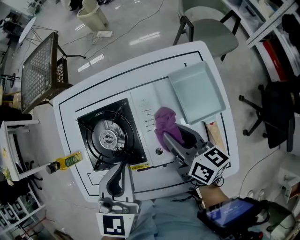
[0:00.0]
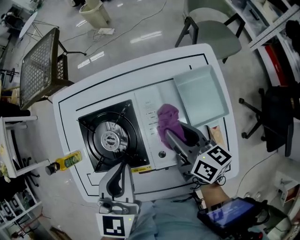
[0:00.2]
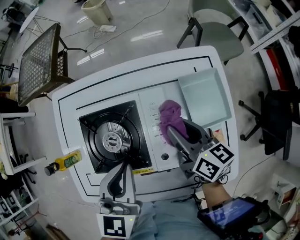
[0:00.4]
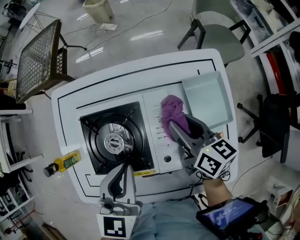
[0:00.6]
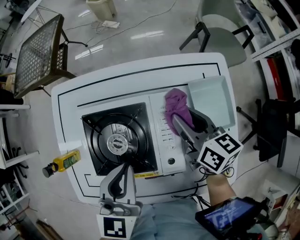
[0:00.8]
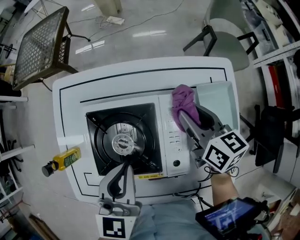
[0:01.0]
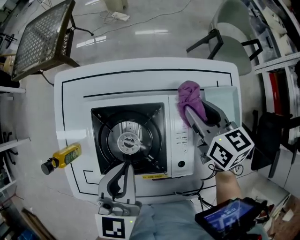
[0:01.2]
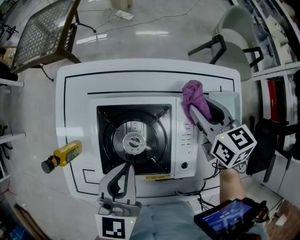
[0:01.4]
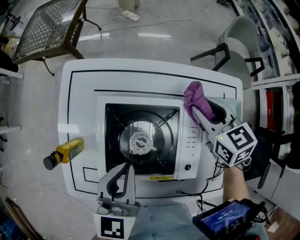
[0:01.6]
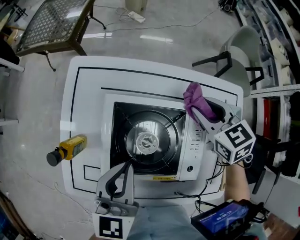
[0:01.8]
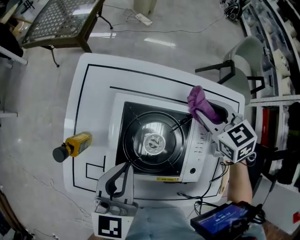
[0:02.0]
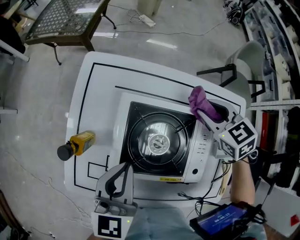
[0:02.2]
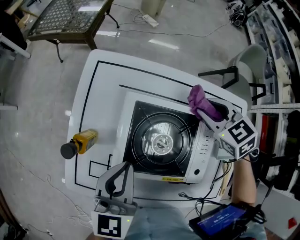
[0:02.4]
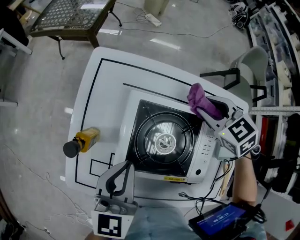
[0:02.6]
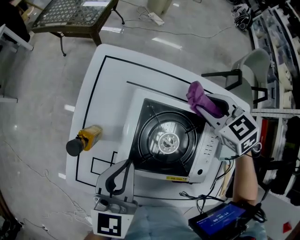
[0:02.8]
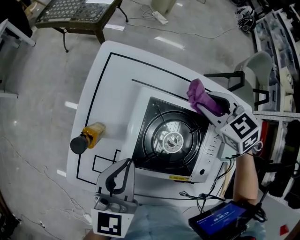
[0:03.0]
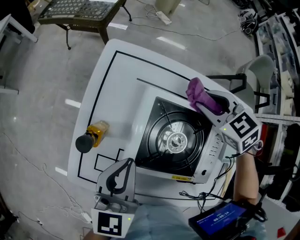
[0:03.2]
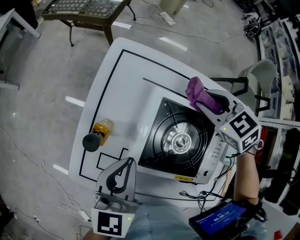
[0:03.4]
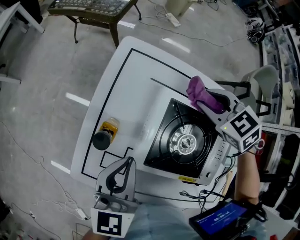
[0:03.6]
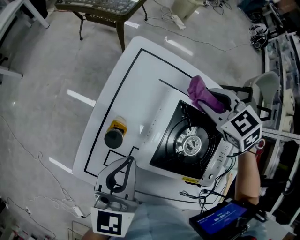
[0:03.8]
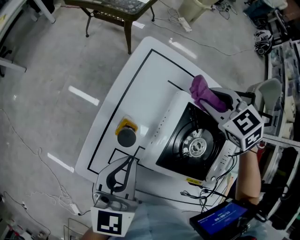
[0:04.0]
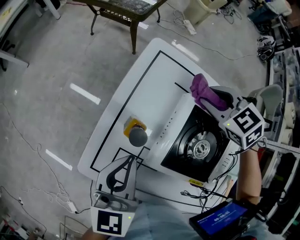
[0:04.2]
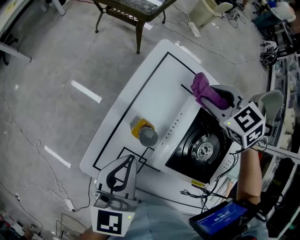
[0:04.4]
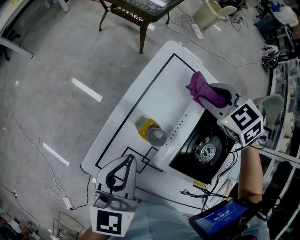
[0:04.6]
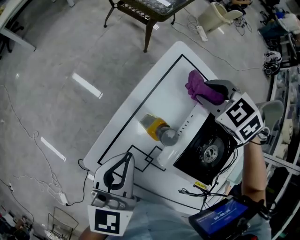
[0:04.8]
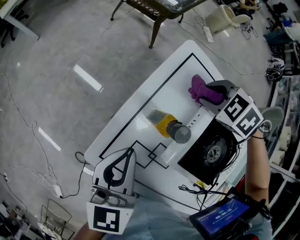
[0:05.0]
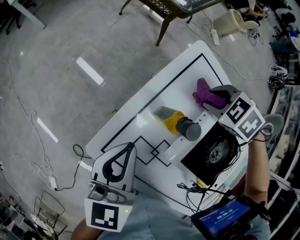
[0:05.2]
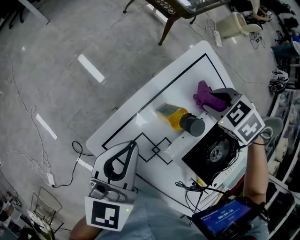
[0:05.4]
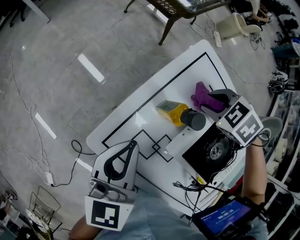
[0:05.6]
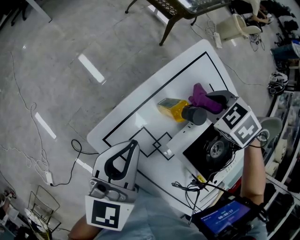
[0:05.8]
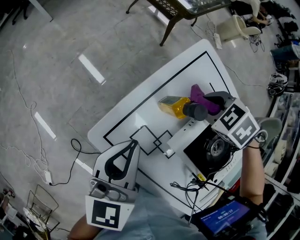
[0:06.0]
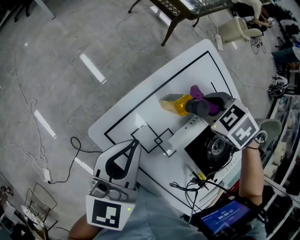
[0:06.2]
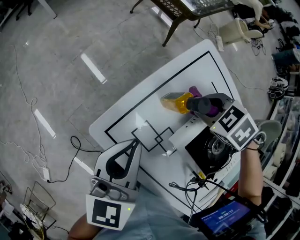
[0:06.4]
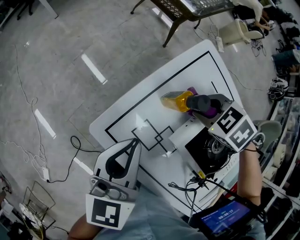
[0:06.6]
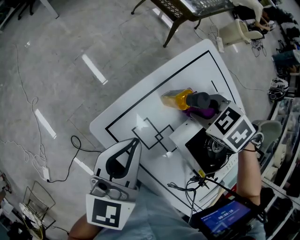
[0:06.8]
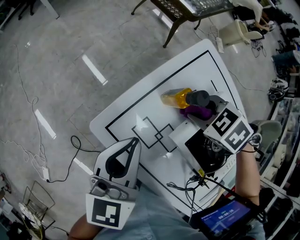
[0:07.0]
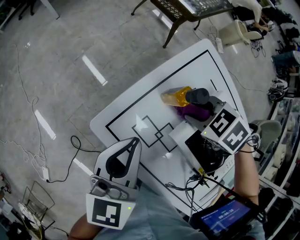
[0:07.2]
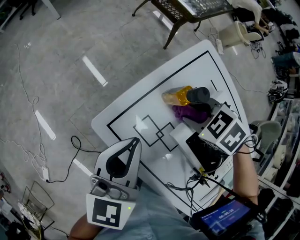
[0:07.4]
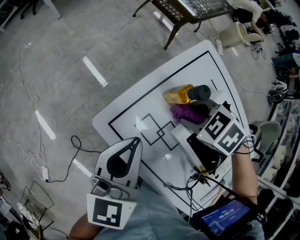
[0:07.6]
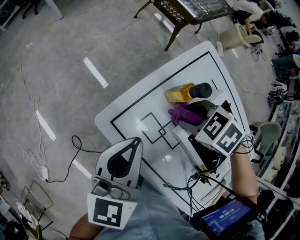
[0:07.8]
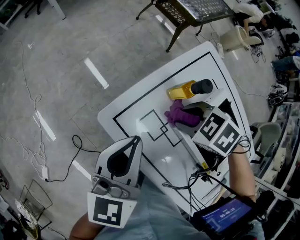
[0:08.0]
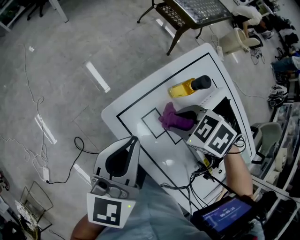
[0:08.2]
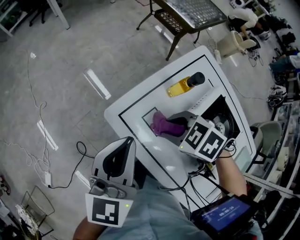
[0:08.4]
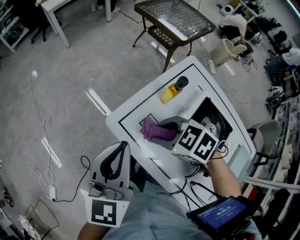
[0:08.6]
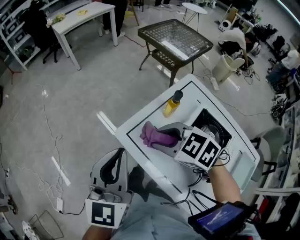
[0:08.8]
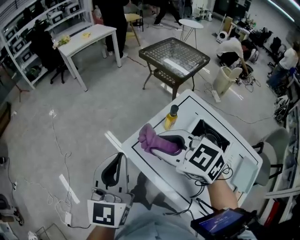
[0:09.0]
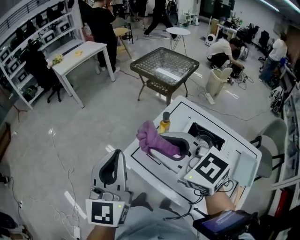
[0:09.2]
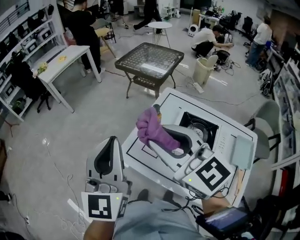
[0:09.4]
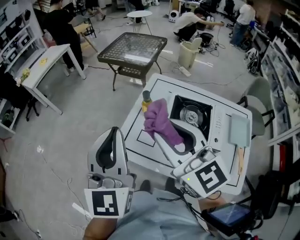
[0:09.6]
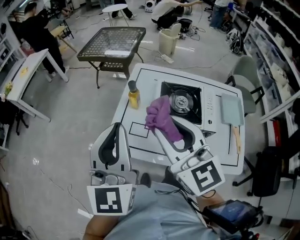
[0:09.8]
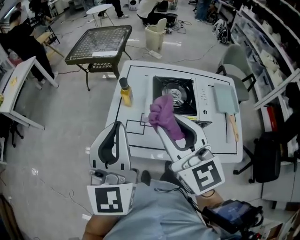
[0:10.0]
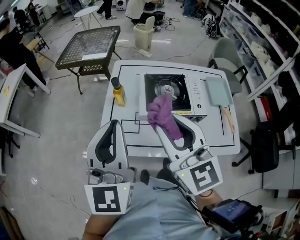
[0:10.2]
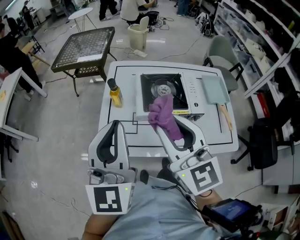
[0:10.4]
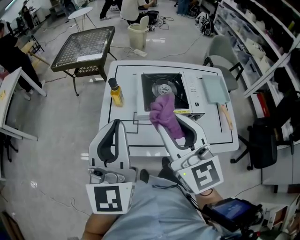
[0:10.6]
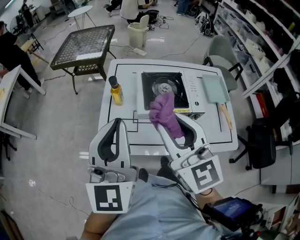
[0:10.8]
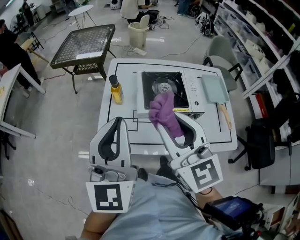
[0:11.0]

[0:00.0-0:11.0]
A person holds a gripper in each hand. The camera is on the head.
0:00.0 to 0:01.6: The left gripper is displaced to the left by some 15 cm; the right gripper is displaced forward by approximately 15 cm, and twists some 40 degrees counterclockwise, seen from behind.
0:01.6 to 0:03.2: The left gripper shifts roughly 10 cm to the left; the right gripper goes roughly 15 cm to the left and forward, and changes its angle by roughly 40 degrees.
0:03.2 to 0:04.8: The left gripper heads to the left, covering some 15 cm. The right gripper is displaced to the left and forward by roughly 25 cm, and swivels some 30 degrees.
0:04.8 to 0:06.2: The left gripper ends up roughly 5 cm from where it was. Meanwhile the right gripper ends up about 10 cm from where it was.
0:06.2 to 0:07.8: The right gripper changes place by about 10 cm.
0:07.8 to 0:09.4: The two grippers go about 35 cm upward. The right gripper tilts its fingers some 70 degrees upward, while the left gripper rotates about 30 degrees.
0:09.4 to 0:11.0: The grippers both shift downward by some 10 cm. The left gripper rotates approximately 30 degrees. Meanwhile the right gripper rotates roughly 50 degrees.

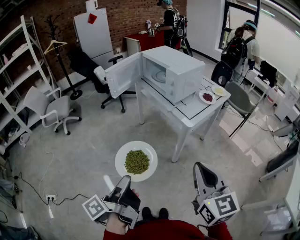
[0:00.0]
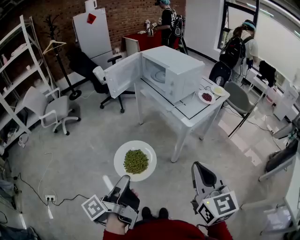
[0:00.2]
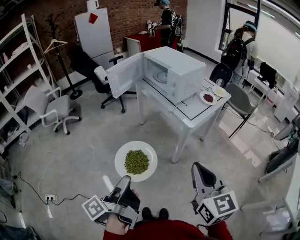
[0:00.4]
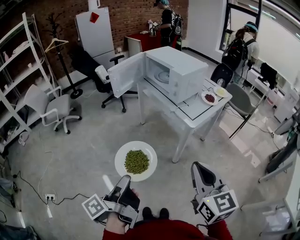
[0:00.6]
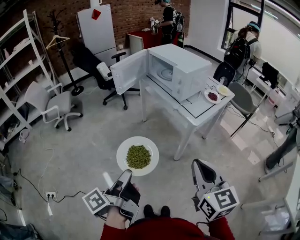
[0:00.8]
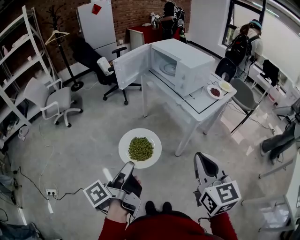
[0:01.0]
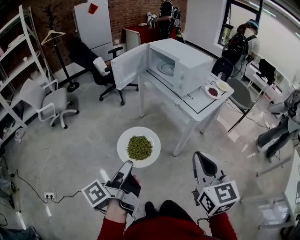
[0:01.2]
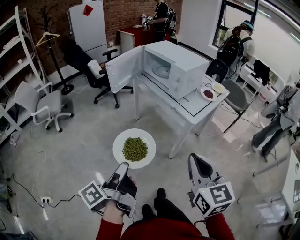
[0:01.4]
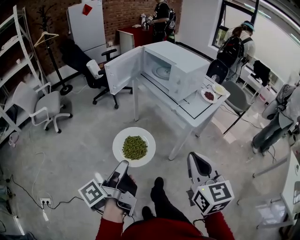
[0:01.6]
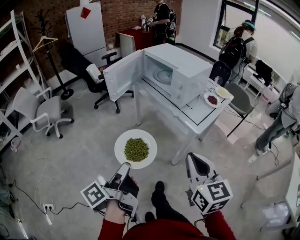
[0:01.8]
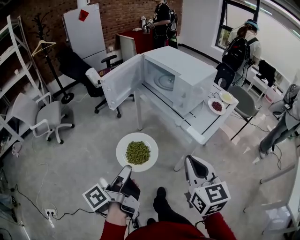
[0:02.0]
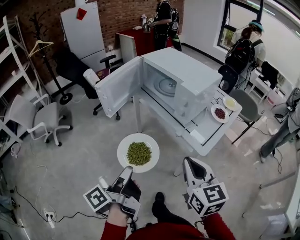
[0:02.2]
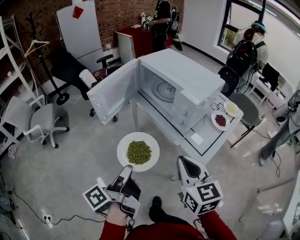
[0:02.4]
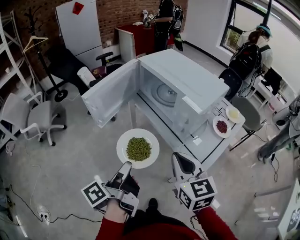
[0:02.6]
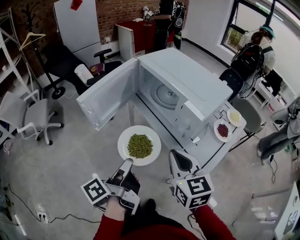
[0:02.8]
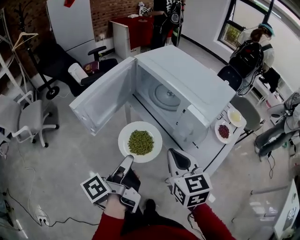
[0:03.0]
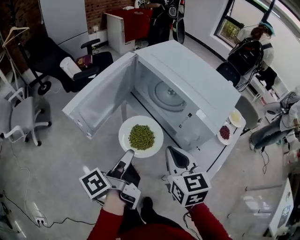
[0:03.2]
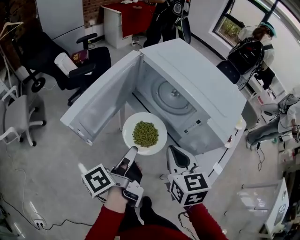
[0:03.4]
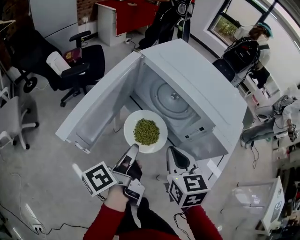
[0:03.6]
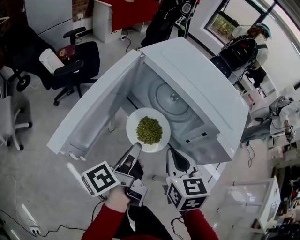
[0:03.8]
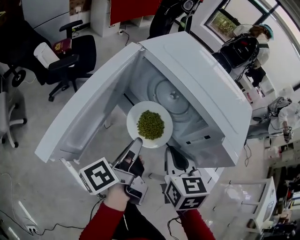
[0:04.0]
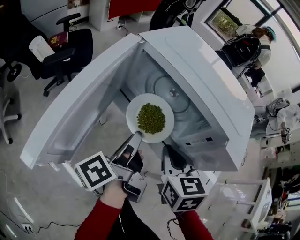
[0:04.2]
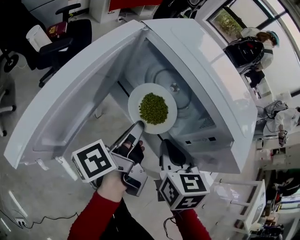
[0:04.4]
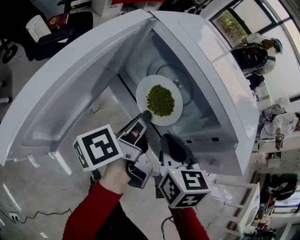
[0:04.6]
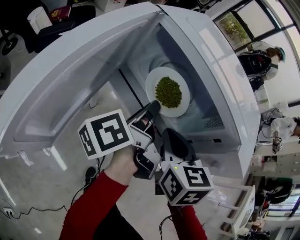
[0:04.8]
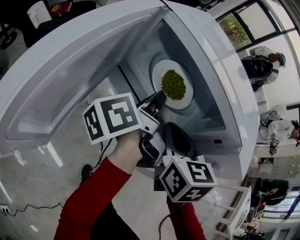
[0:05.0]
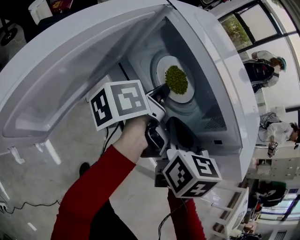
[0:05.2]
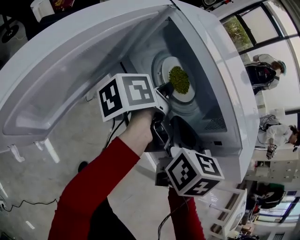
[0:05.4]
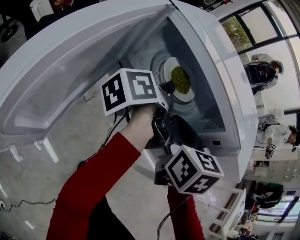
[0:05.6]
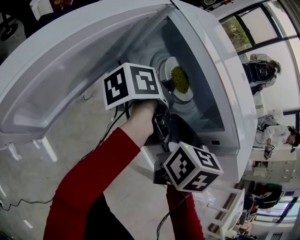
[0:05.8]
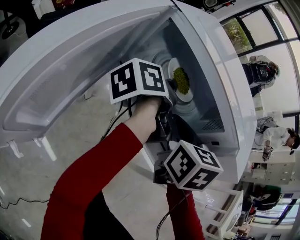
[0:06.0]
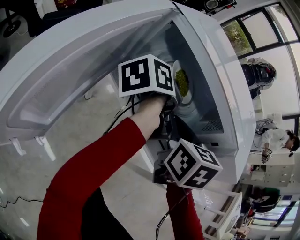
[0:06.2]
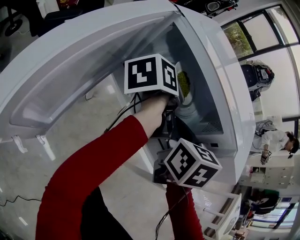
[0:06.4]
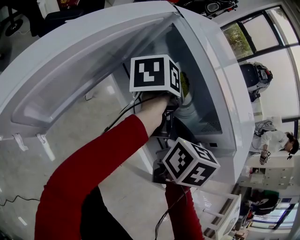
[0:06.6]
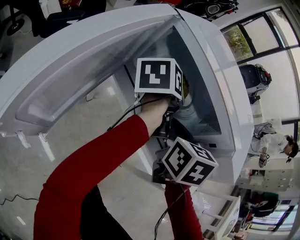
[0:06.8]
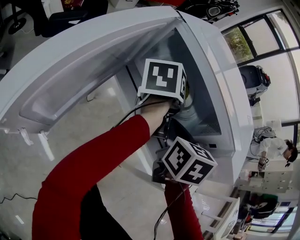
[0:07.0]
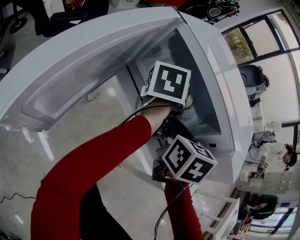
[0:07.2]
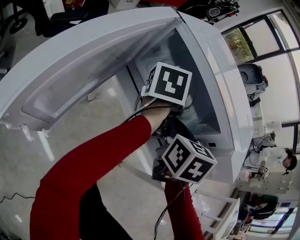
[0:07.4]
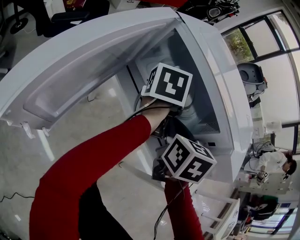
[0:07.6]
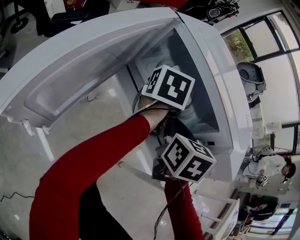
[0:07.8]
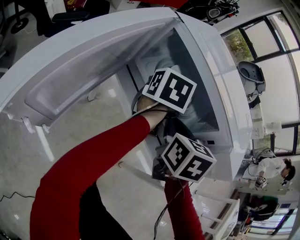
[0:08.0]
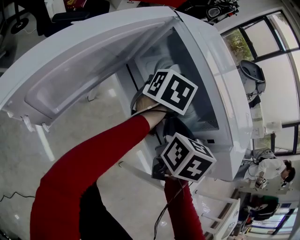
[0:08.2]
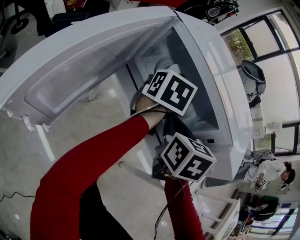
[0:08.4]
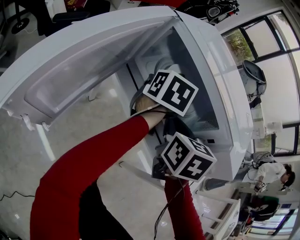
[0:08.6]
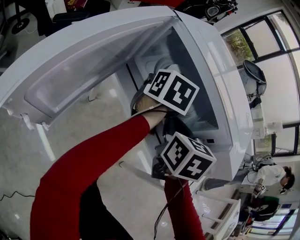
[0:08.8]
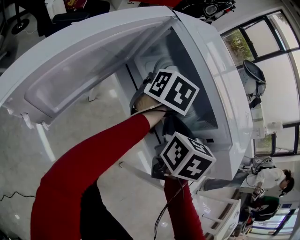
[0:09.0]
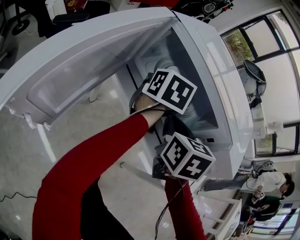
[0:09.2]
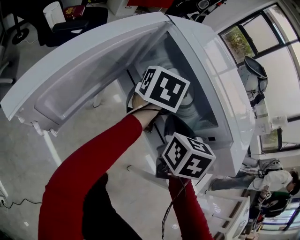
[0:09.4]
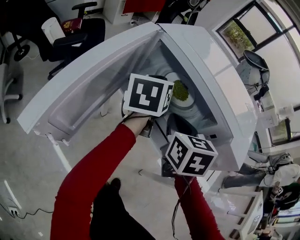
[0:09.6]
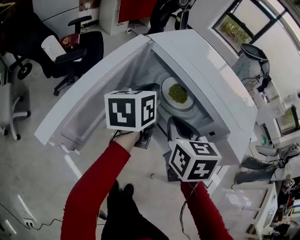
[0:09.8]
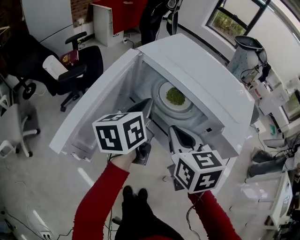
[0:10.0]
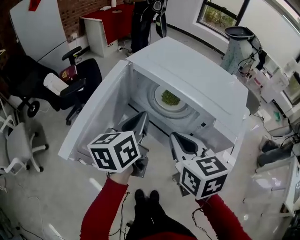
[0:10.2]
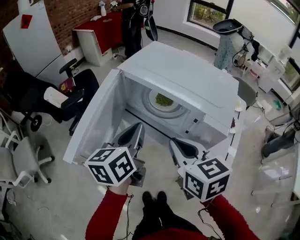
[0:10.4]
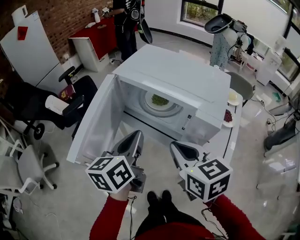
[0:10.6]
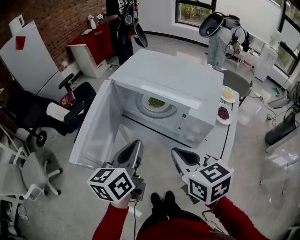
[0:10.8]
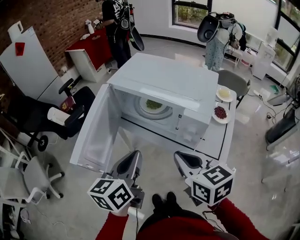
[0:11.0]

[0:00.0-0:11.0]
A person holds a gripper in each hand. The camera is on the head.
0:00.0 to 0:01.6: The left gripper travels forward and to the left by approximately 10 cm, while the right gripper travels to the left and forward by approximately 10 cm.
0:01.6 to 0:03.2: Both grippers are carried forward, roughly 40 cm.
0:03.2 to 0:04.8: The right gripper heads forward and downward, covering about 10 cm, while the left gripper is displaced forward by roughly 20 cm.
0:04.8 to 0:06.2: The left gripper shifts about 10 cm forward, and turns by about 20 degrees.
0:06.2 to 0:07.8: The left gripper rotates some 40 degrees.
0:07.8 to 0:09.4: The grippers stay close to where they were, moving slightly.
0:09.4 to 0:11.0: The right gripper goes about 20 cm backward and upward, and rotates roughly 20 degrees, while the left gripper is displaced backward by some 25 cm.

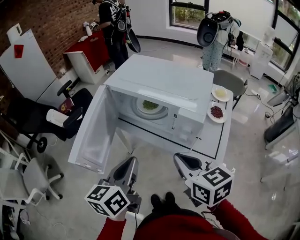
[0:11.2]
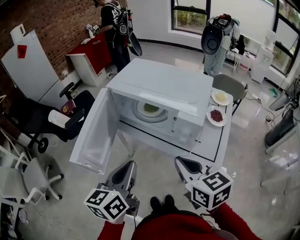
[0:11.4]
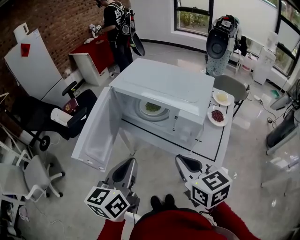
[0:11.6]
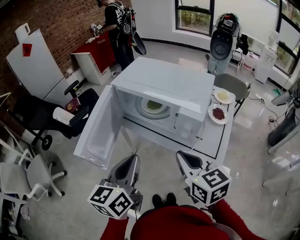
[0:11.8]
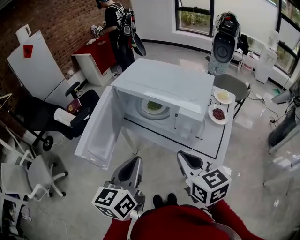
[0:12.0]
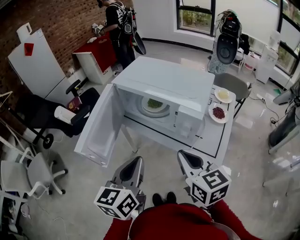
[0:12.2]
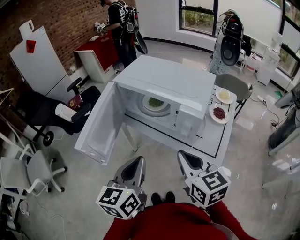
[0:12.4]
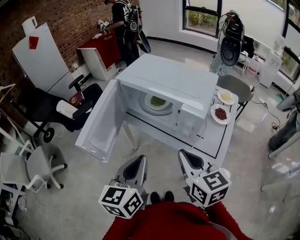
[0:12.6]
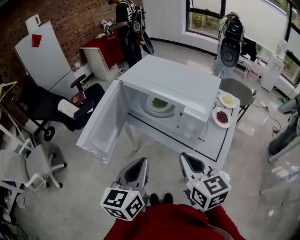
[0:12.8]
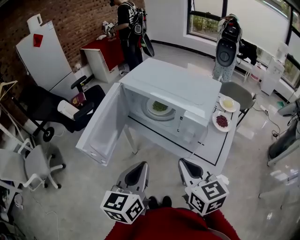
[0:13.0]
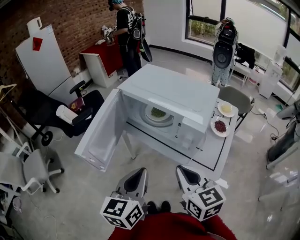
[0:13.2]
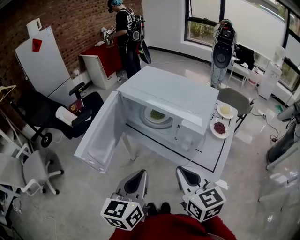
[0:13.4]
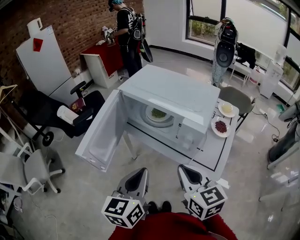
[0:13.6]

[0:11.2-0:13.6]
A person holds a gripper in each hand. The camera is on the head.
0:11.2 to 0:12.4: The grippers move only a little.
0:12.4 to 0:13.6: The two grippers keep their place.
